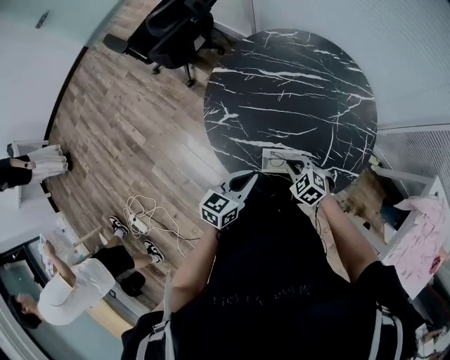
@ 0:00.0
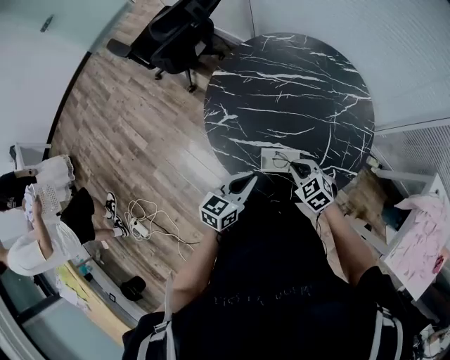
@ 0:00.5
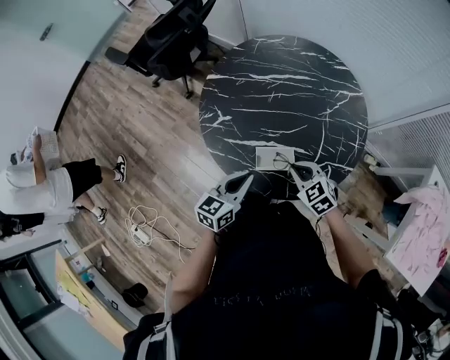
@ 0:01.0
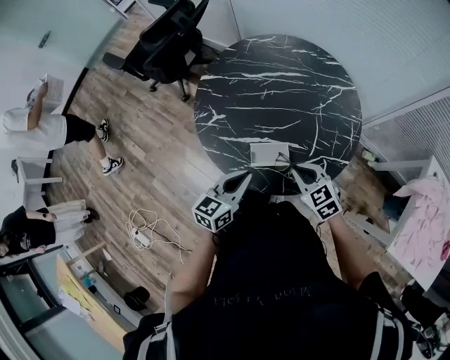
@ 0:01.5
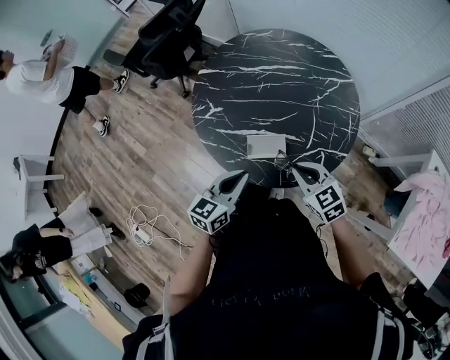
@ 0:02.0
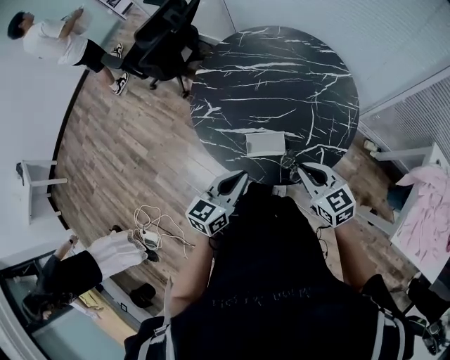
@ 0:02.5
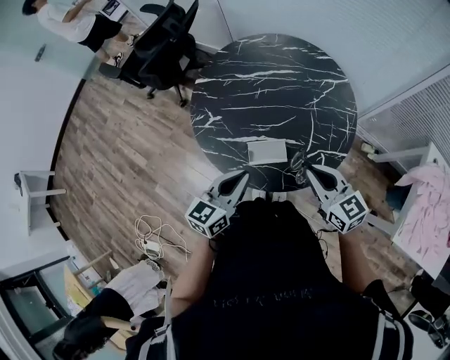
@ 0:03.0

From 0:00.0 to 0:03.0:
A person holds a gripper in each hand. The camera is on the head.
From 0:00.0 to 0:01.5: The left gripper changes place by roughly 5 cm. Meanwhile the right gripper heads upward, to the right and backward, covering roughly 15 cm, and turns by roughly 20 degrees.
From 0:01.5 to 0:03.0: The left gripper is displaced upward by roughly 5 cm. Meanwhile the right gripper moves upward, roughly 10 cm, and changes its angle by some 30 degrees.

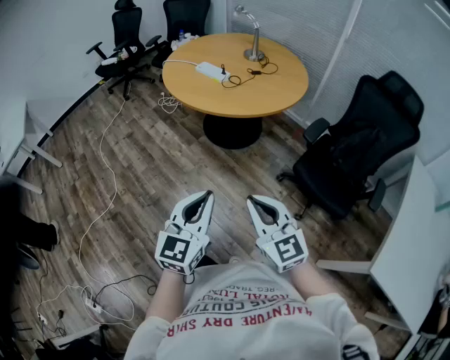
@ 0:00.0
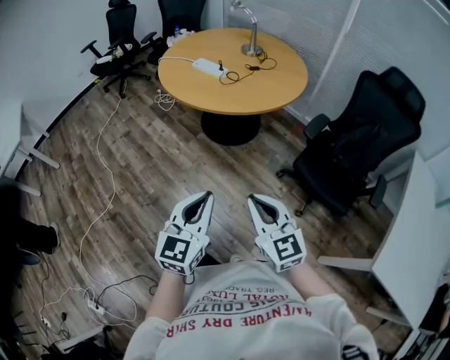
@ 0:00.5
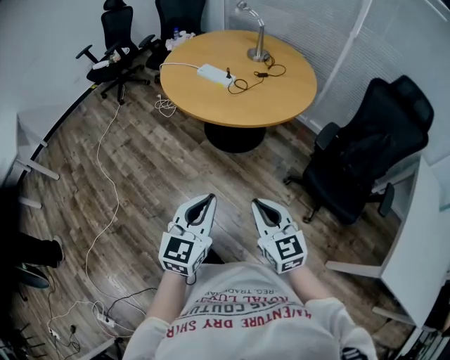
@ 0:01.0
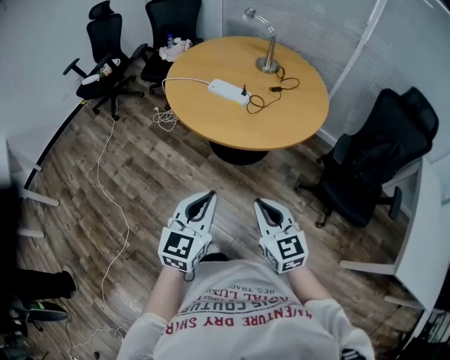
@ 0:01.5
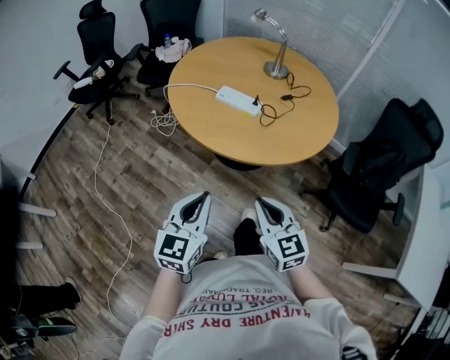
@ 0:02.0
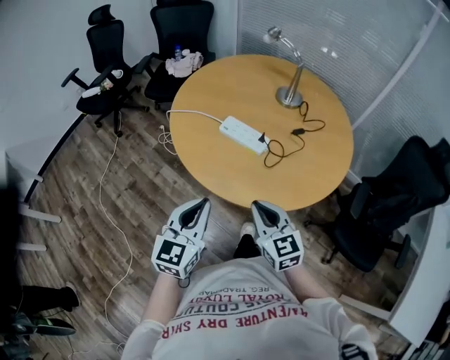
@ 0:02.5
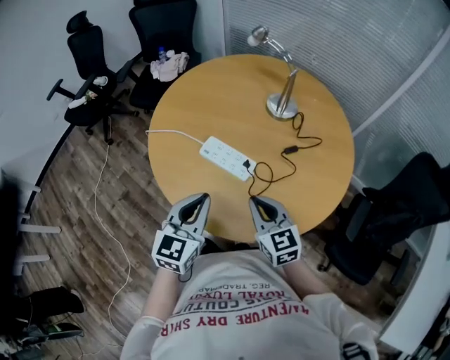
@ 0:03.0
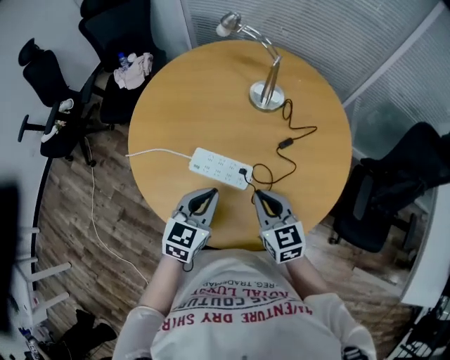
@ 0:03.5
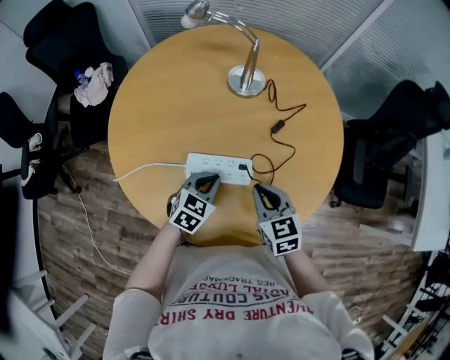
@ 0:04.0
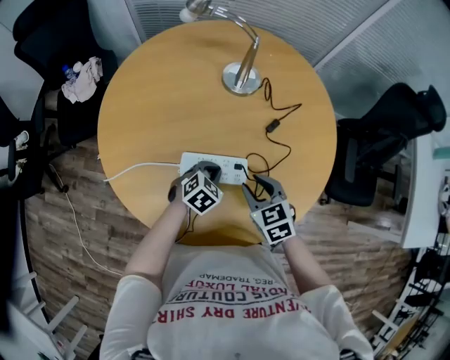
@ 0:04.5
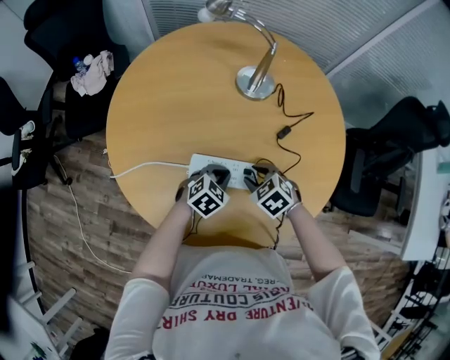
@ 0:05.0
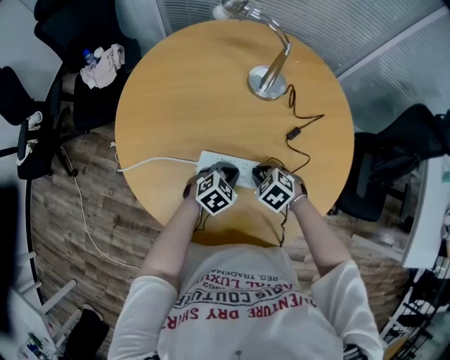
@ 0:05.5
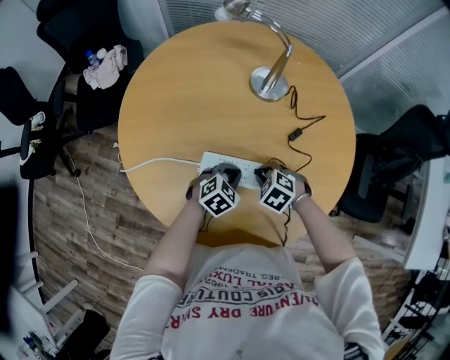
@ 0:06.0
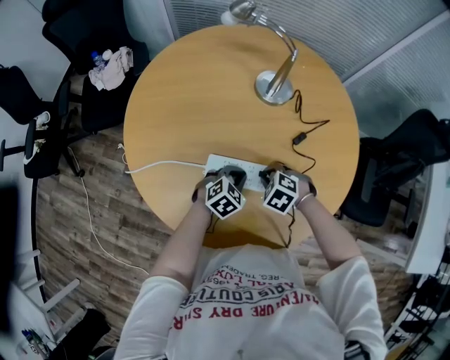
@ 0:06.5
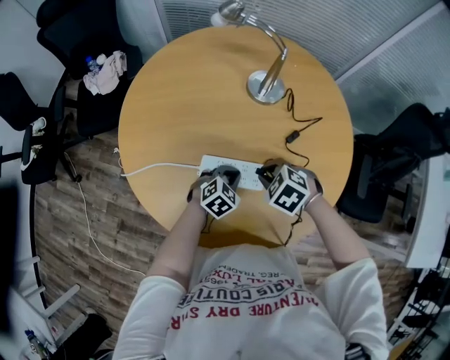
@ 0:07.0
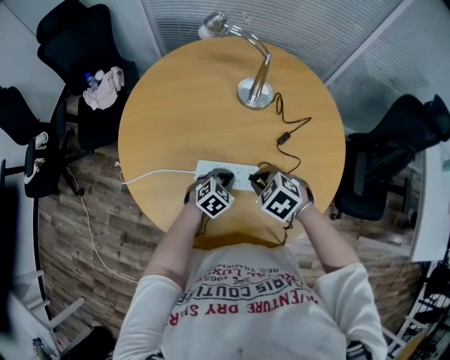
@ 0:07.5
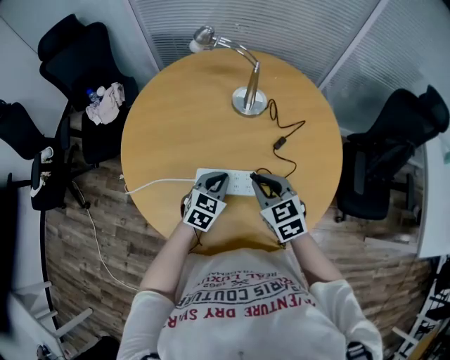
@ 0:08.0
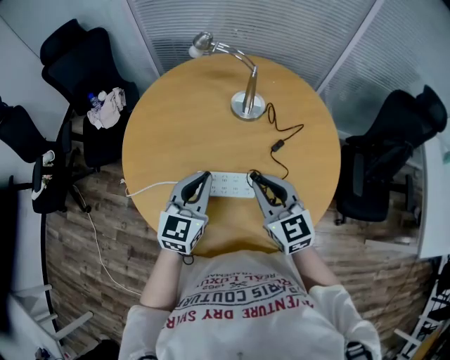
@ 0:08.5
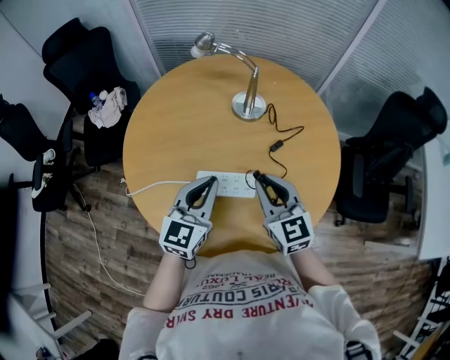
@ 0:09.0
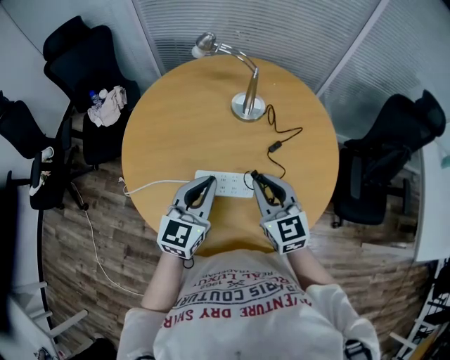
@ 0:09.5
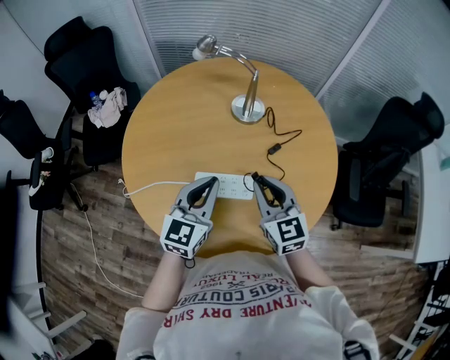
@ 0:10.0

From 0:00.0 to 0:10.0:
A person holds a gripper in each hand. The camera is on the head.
From 0:00.0 to 0:02.0: The grippers both shift forward and to the left by some 40 cm. The right gripper changes its angle by about 20 degrees.
From 0:02.0 to 0:04.0: The left gripper changes place by about 50 cm, and swivels some 50 degrees. Meanwhile the right gripper moves approximately 40 cm, and rotates roughly 30 degrees.
From 0:04.0 to 0:06.0: The right gripper moves downward and forward, roughly 15 cm, tips its fingers downward by some 40 degrees, and opens, then closes again; the left gripper shifts about 5 cm downward.
From 0:06.0 to 0:08.0: The left gripper moves upward, roughly 10 cm, while the right gripper shifts roughly 15 cm upward, and tips its fingers upward by roughly 40 degrees.
From 0:08.0 to 0:10.0: The left gripper goes some 15 cm upward, and rotates approximately 30 degrees; the right gripper moves upward, approximately 5 cm, and changes its angle by some 20 degrees.

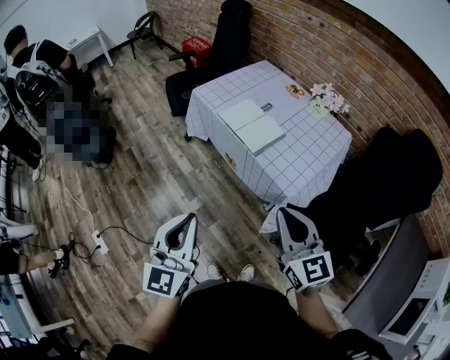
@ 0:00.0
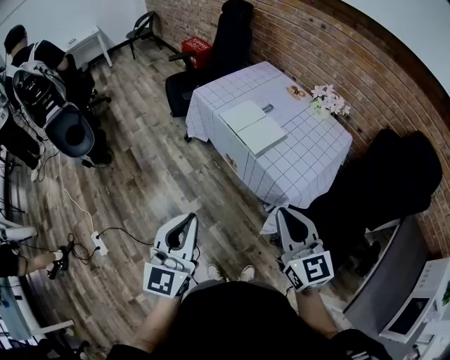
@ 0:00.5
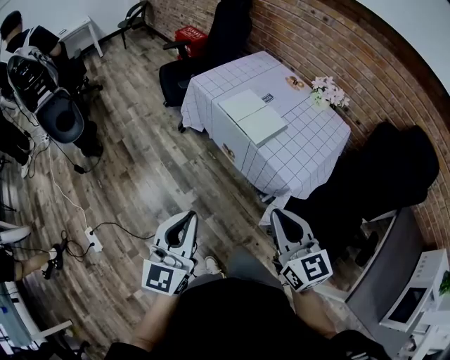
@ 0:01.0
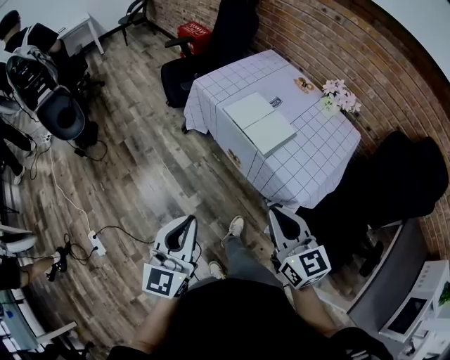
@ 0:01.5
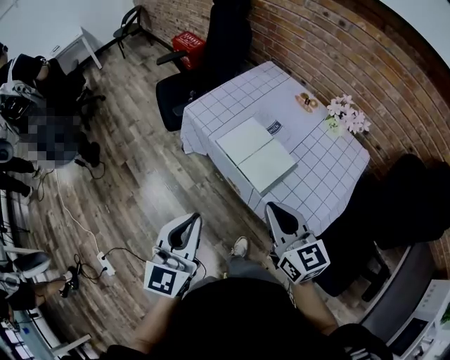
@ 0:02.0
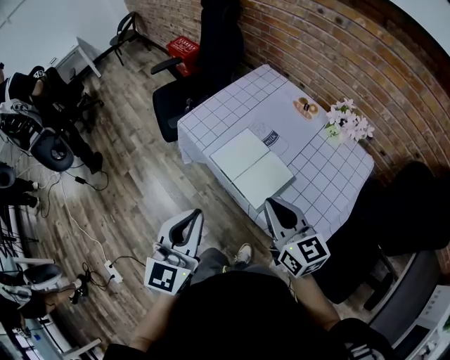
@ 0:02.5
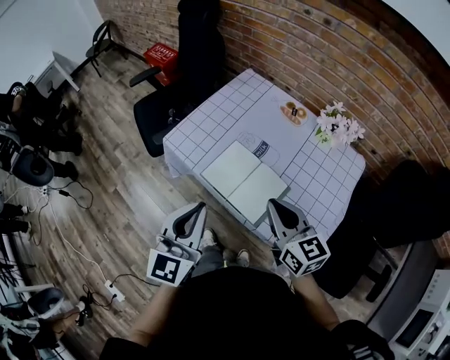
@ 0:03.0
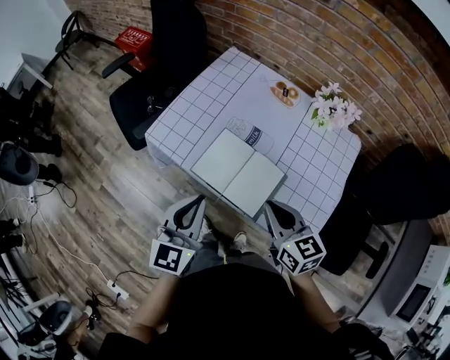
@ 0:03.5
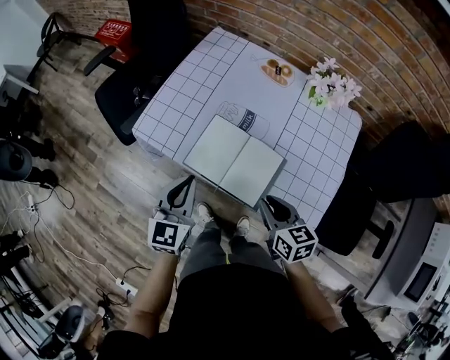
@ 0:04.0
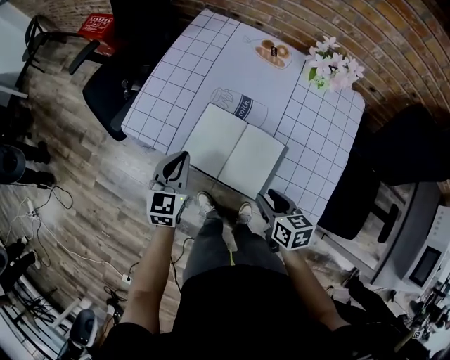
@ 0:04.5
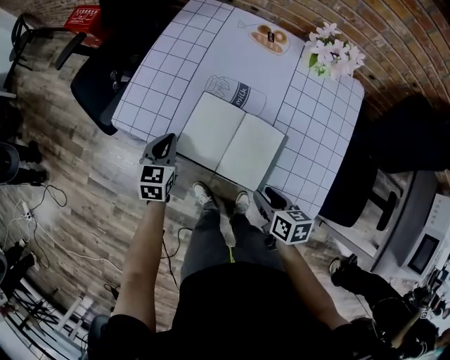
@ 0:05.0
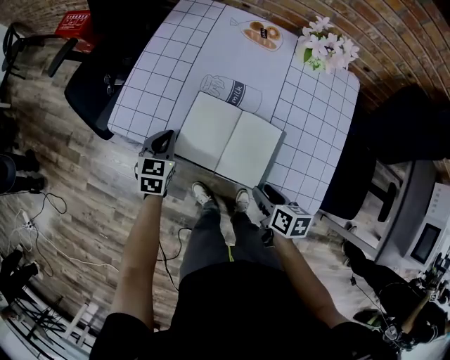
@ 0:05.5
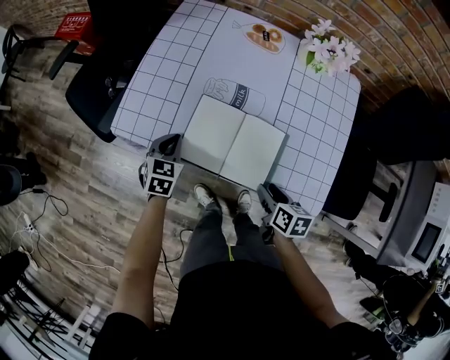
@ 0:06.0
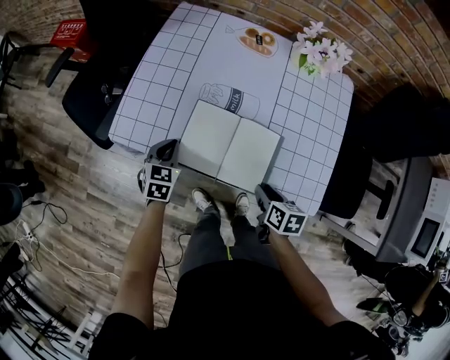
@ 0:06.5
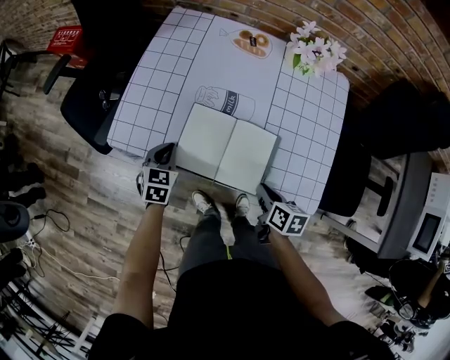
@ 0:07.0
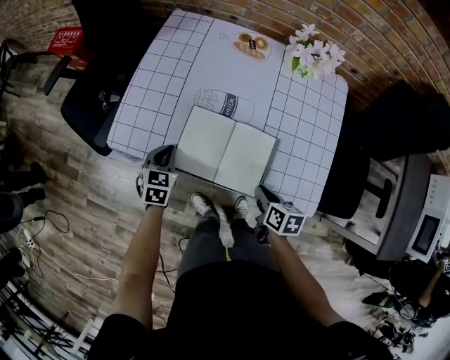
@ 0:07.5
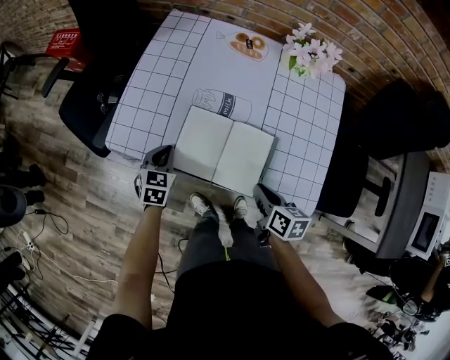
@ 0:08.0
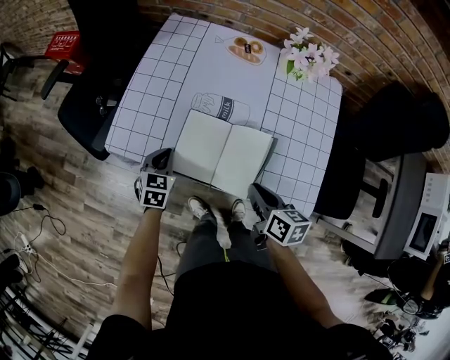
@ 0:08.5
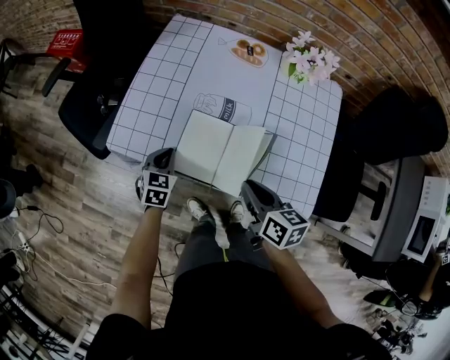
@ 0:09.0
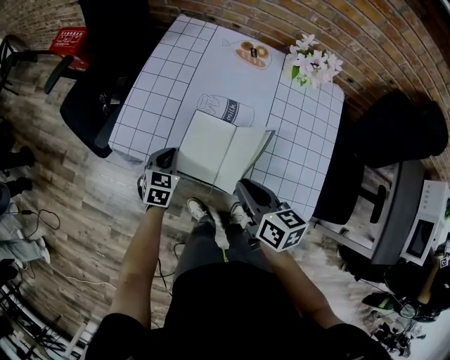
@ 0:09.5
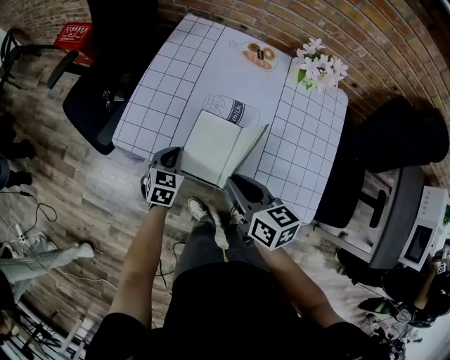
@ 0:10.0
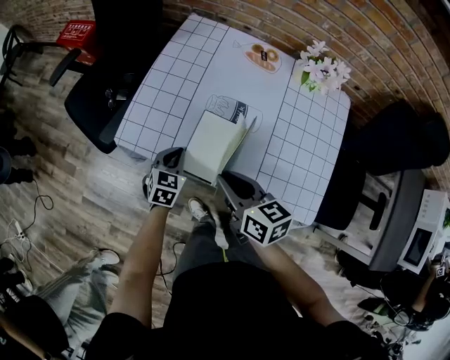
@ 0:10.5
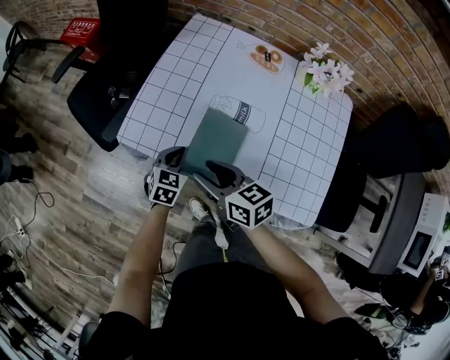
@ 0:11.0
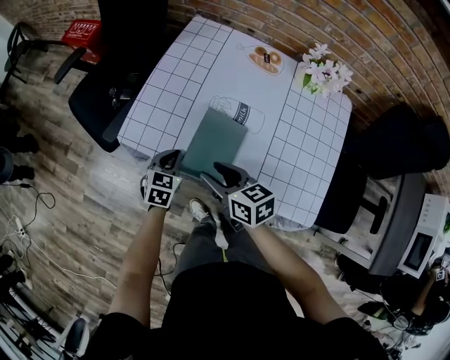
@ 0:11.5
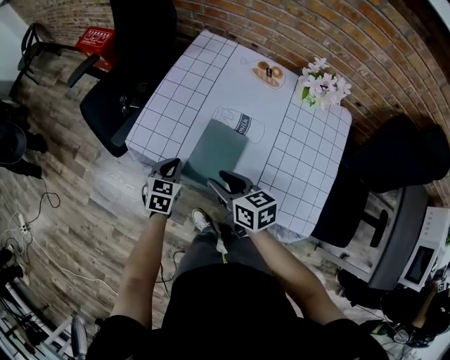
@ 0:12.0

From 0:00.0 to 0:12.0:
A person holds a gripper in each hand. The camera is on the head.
From 0:00.0 to 0:02.0: The two grippers go about 25 cm forward.
From 0:02.0 to 0:04.0: The left gripper goes approximately 30 cm forward and downward, and rotates about 20 degrees; the right gripper goes about 20 cm downward and forward, and swivels about 40 degrees.
From 0:04.0 to 0:06.0: The right gripper moves downward, roughly 10 cm, turns by approximately 30 degrees, and opens up; the left gripper is displaced downward and forward by about 20 cm, and changes its angle by roughly 30 degrees.
From 0:06.0 to 0:08.0: The right gripper closes up.
From 0:08.0 to 0:10.0: The right gripper shifts roughly 15 cm to the left, upward and forward, and rotates about 20 degrees.
From 0:10.0 to 0:12.0: The right gripper opens up.

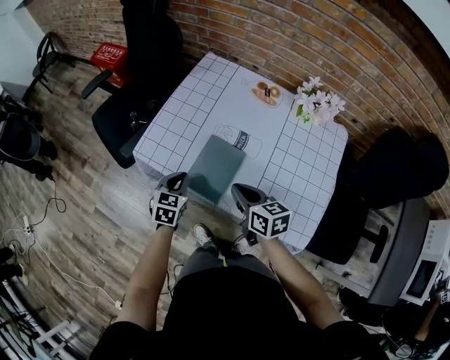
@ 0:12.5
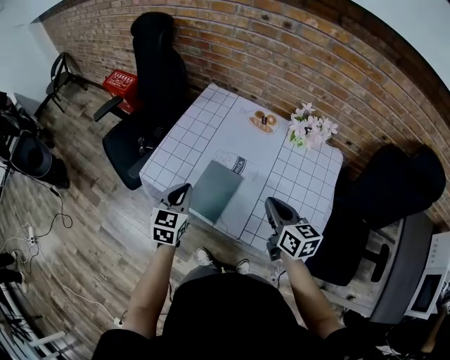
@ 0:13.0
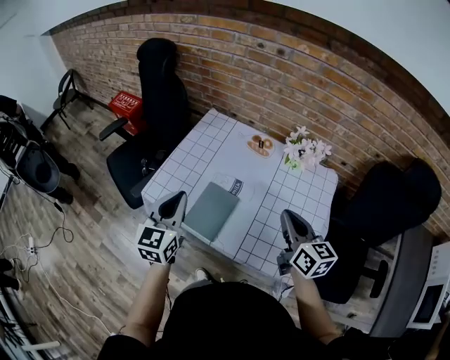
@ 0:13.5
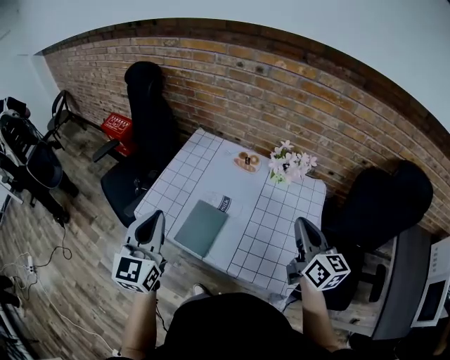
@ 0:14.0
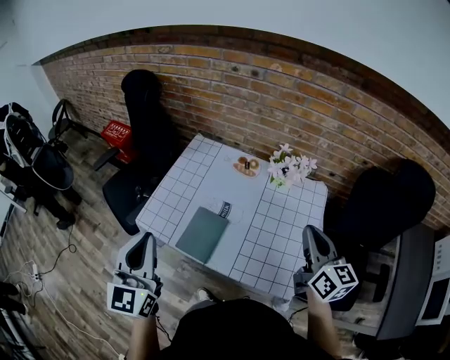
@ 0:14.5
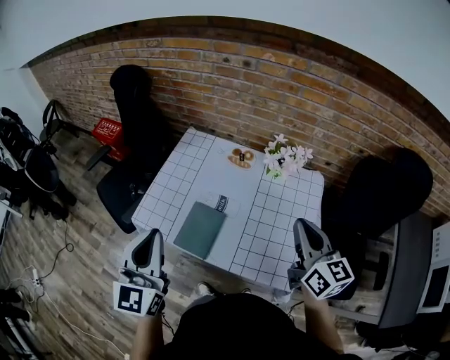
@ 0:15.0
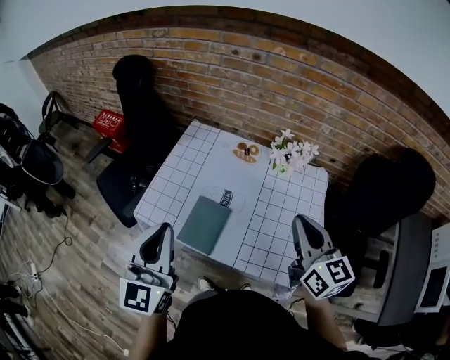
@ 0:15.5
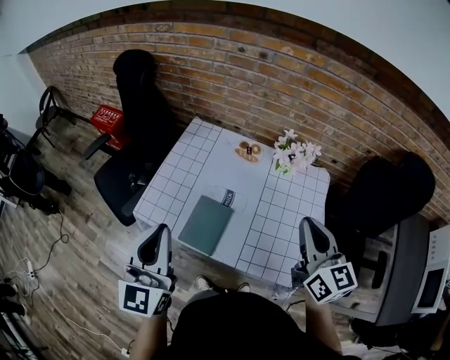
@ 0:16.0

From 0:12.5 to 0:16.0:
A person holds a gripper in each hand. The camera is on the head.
From 0:12.5 to 0:14.5: The right gripper goes some 35 cm to the right and upward, and rotates about 40 degrees. Meanwhile the left gripper moves upward, some 35 cm, and tilts its fingers some 40 degrees upward.
From 0:14.5 to 0:16.0: The right gripper shifts some 5 cm to the left.
